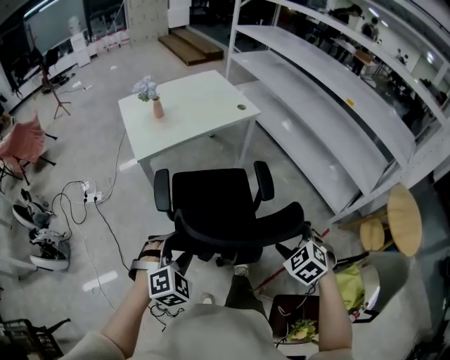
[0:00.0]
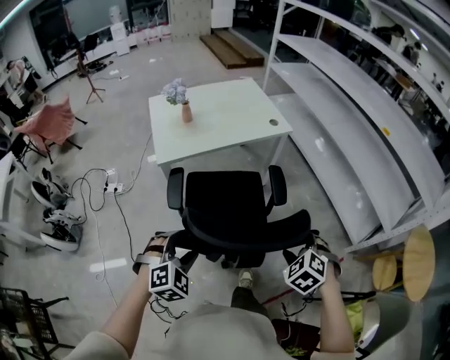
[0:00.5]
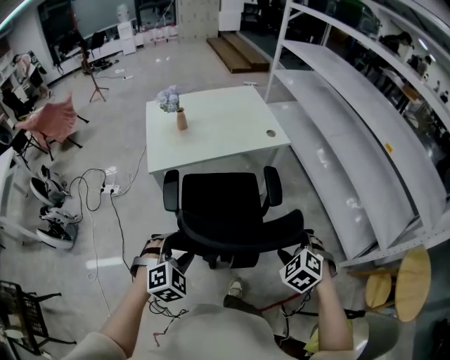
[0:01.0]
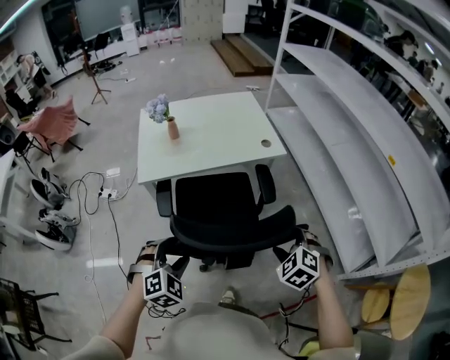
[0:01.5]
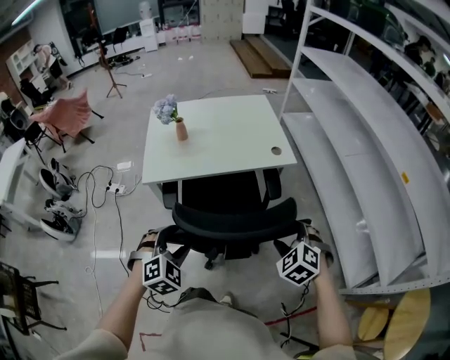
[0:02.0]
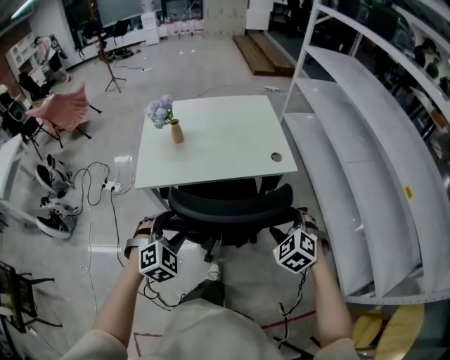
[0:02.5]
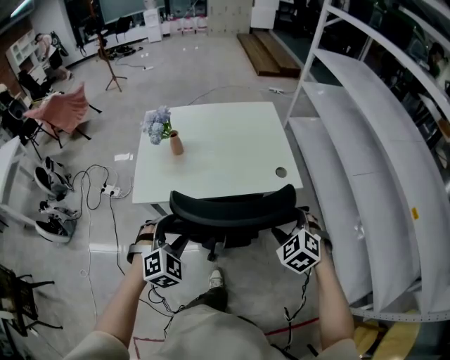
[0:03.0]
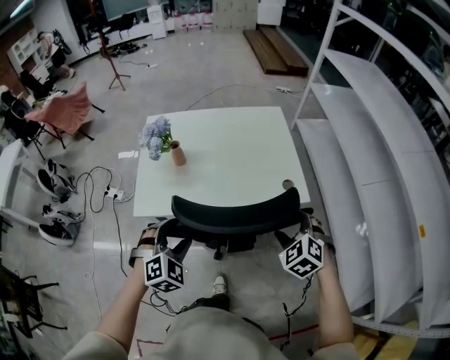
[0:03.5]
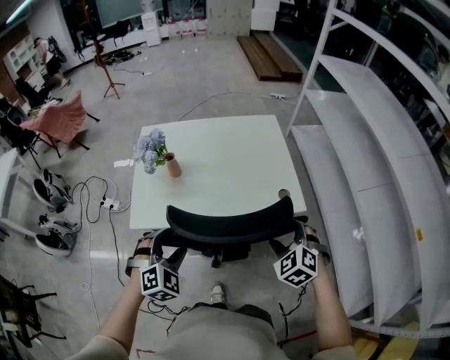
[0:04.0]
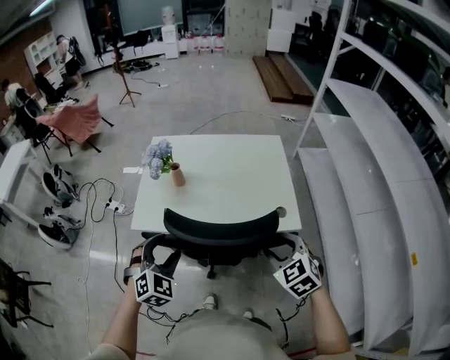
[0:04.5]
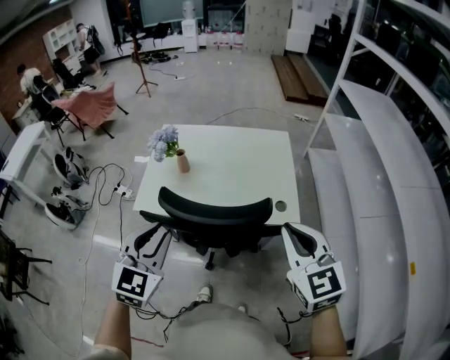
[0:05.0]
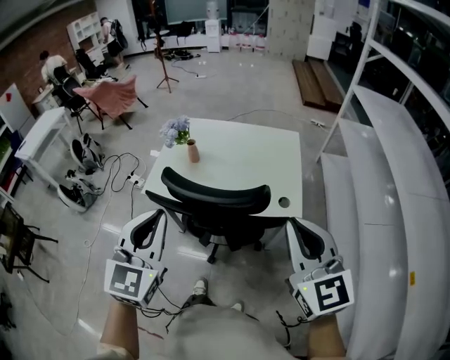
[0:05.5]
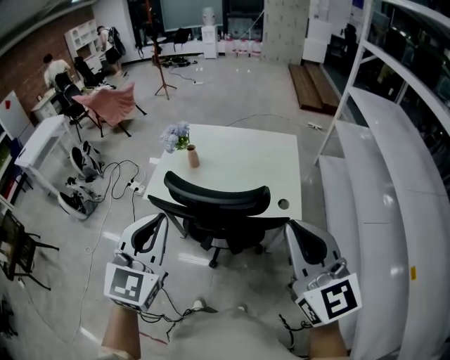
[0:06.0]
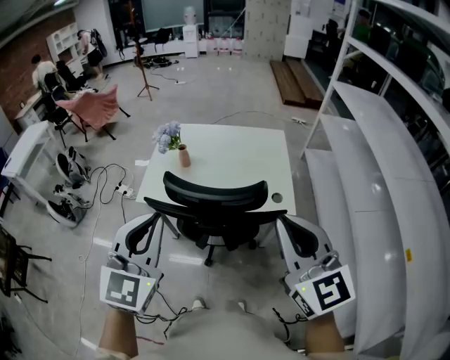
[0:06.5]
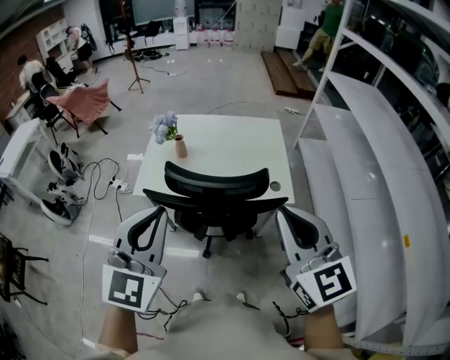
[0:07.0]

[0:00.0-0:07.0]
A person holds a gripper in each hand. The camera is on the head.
0:00.0 to 0:02.0: Both grippers move forward, some 30 cm. The right gripper swivels about 20 degrees; the left gripper rotates approximately 20 degrees.
0:02.0 to 0:03.5: Both grippers travel together forward, some 25 cm.
0:03.5 to 0:05.0: Both grippers travel together upward, about 20 cm. The right gripper tilts its fingers about 30 degrees upward, and closes up, while the left gripper rotates about 40 degrees, and closes its fingers.
0:05.0 to 0:07.0: The right gripper is displaced backward, upward and to the left by roughly 10 cm, while the left gripper is displaced upward and backward by roughly 15 cm.

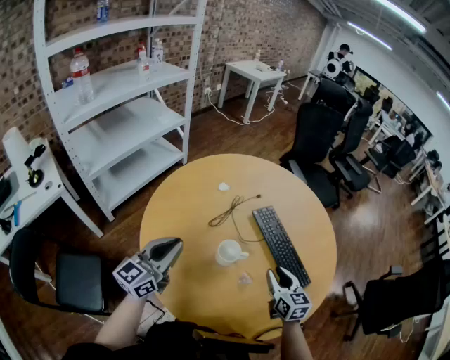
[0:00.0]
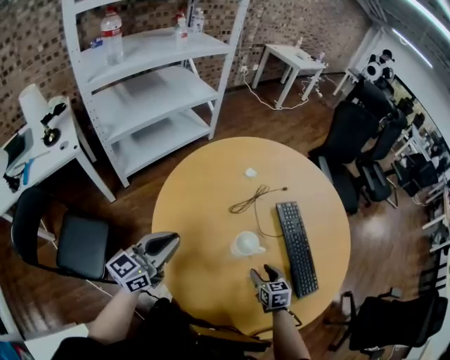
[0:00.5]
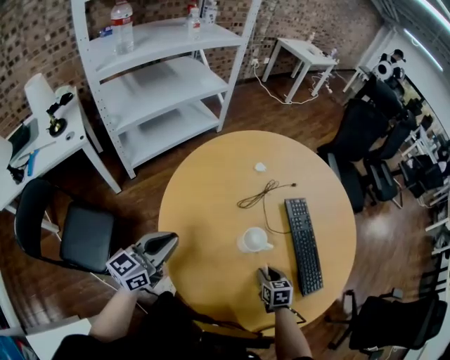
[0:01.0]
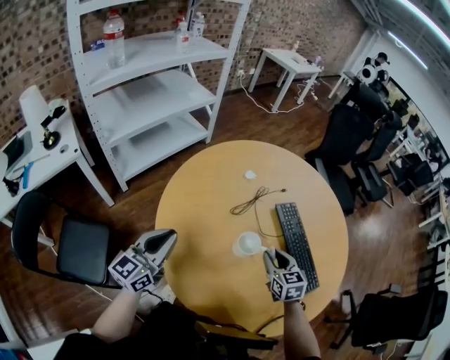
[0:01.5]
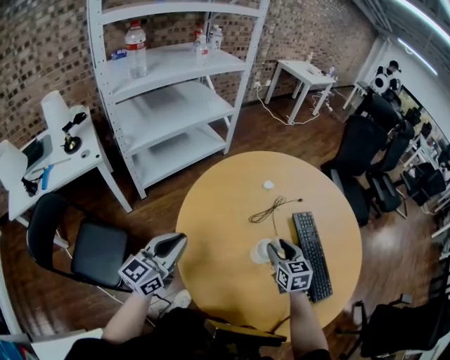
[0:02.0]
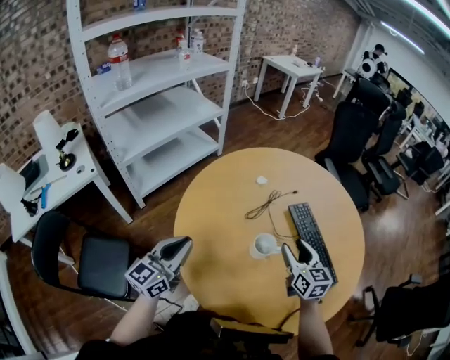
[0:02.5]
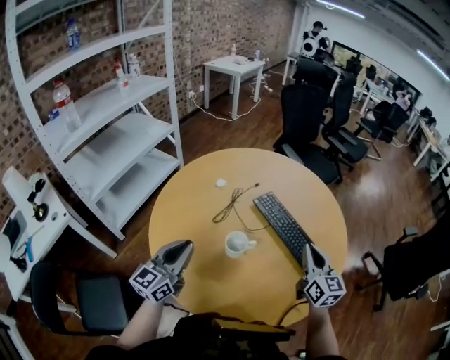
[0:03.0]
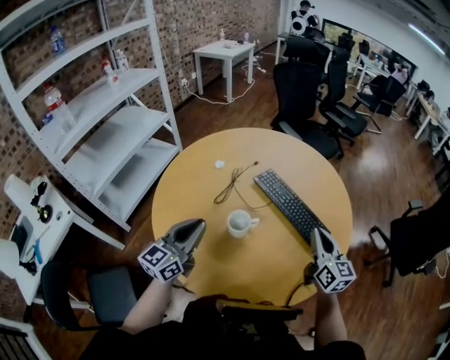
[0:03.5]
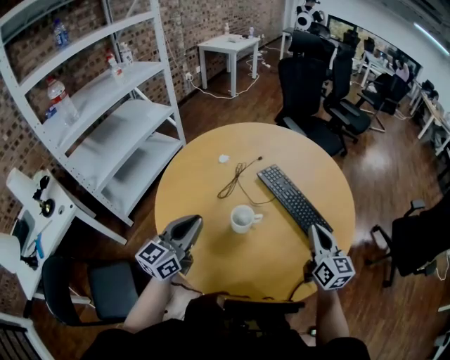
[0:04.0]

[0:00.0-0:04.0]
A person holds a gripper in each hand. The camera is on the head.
0:00.0 to 0:02.0: The left gripper shifts some 10 cm to the left. The right gripper travels to the left and forward by approximately 20 cm, moves roughly 15 cm downward and comes back, and rotates some 20 degrees.
0:02.0 to 0:04.0: The left gripper moves about 15 cm, and rotates approximately 20 degrees, while the right gripper changes place by about 25 cm, turns by about 40 degrees, and closes its fingers.

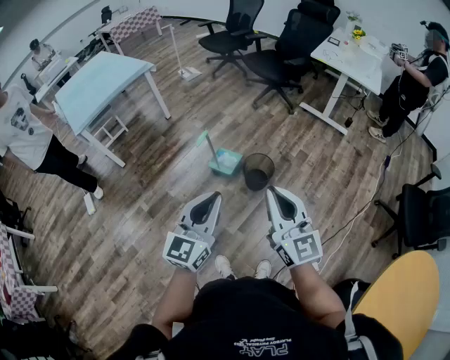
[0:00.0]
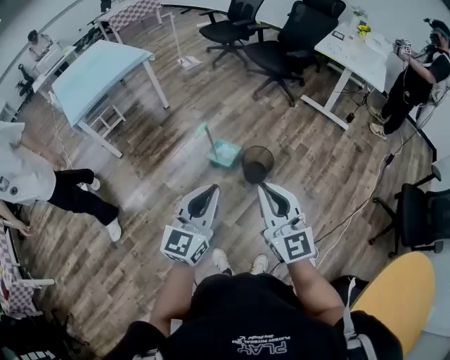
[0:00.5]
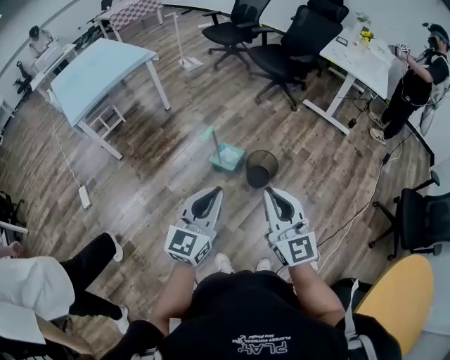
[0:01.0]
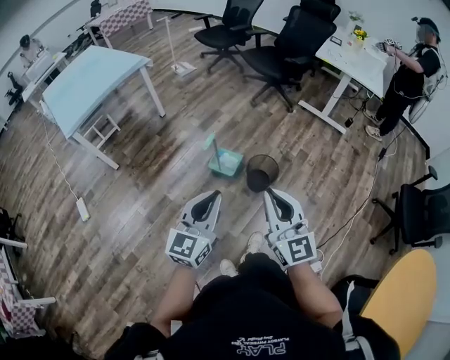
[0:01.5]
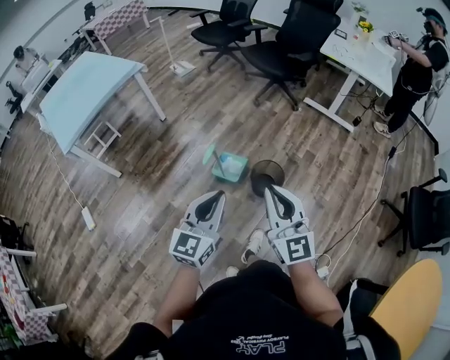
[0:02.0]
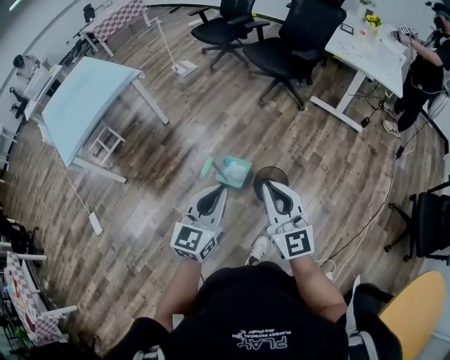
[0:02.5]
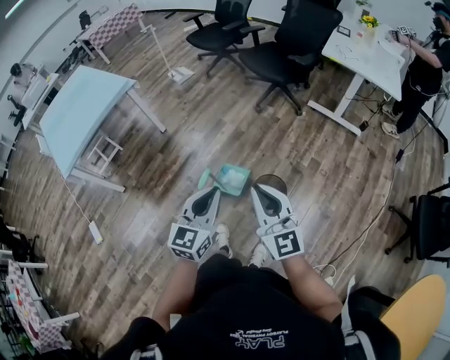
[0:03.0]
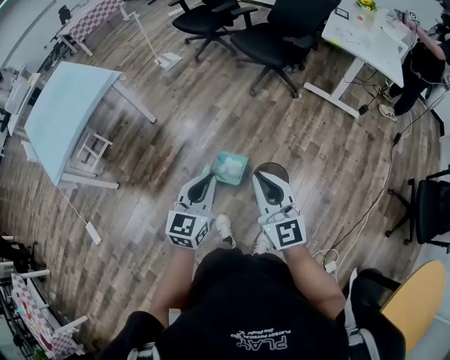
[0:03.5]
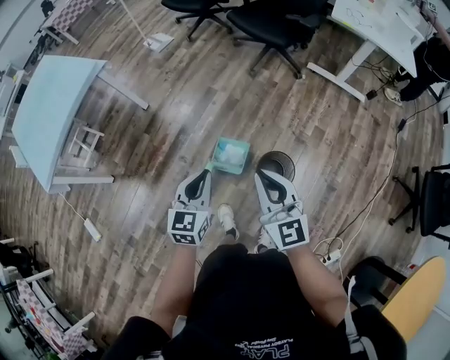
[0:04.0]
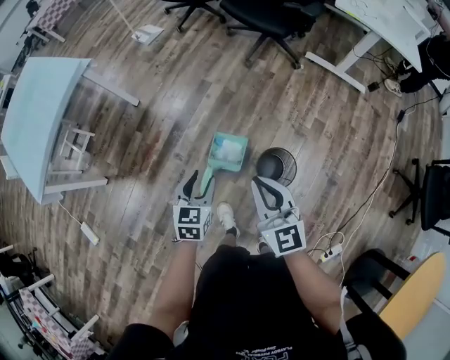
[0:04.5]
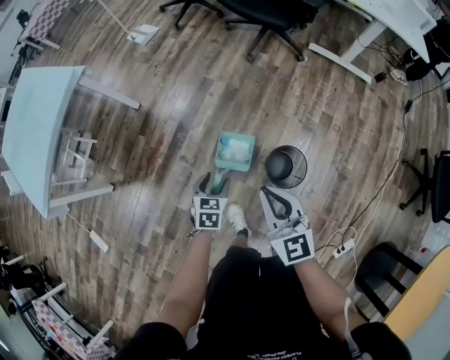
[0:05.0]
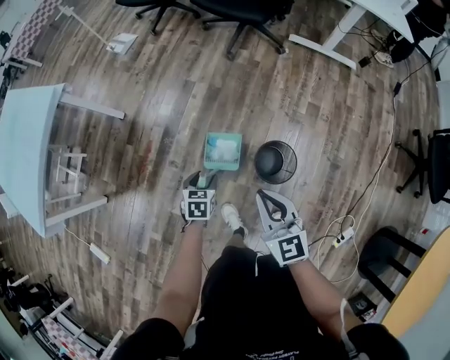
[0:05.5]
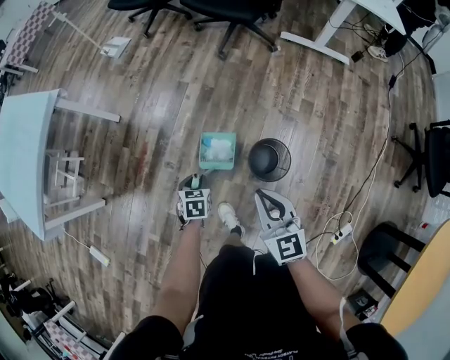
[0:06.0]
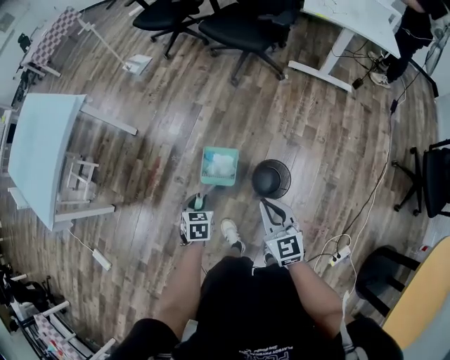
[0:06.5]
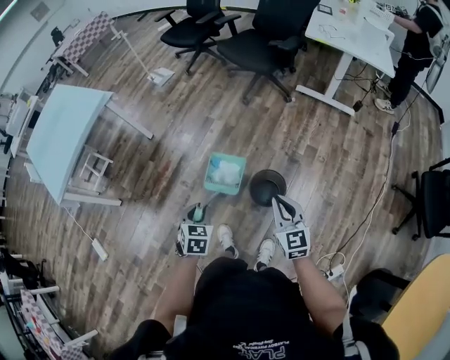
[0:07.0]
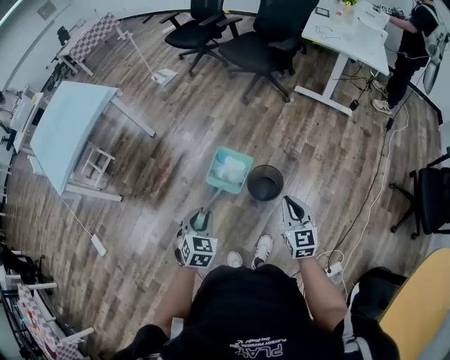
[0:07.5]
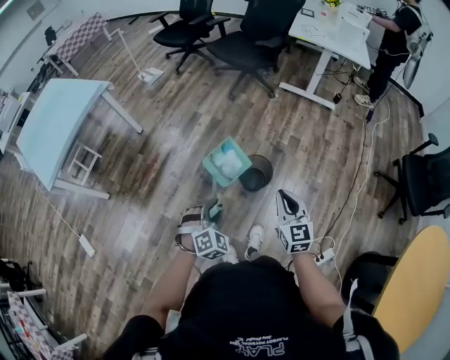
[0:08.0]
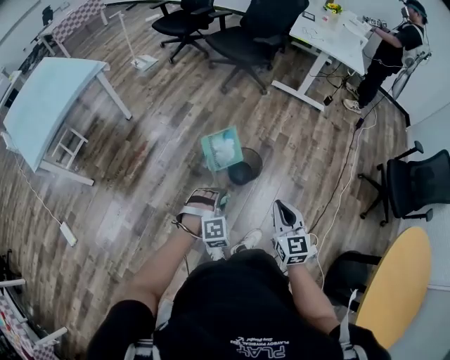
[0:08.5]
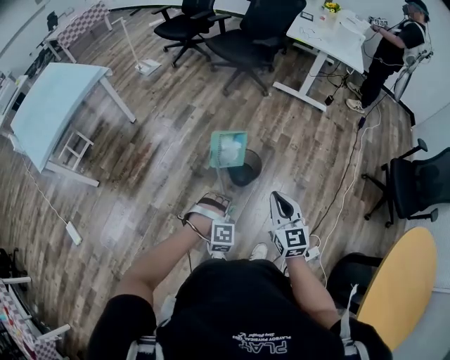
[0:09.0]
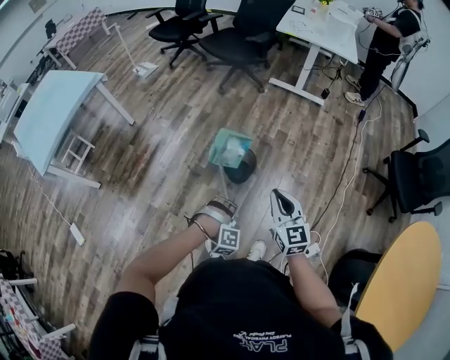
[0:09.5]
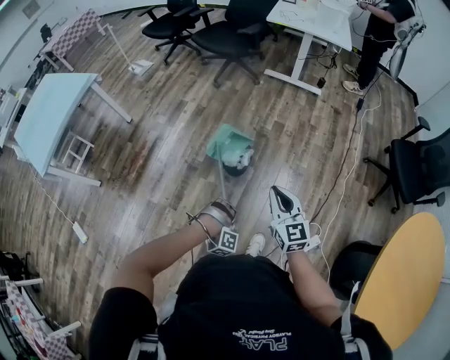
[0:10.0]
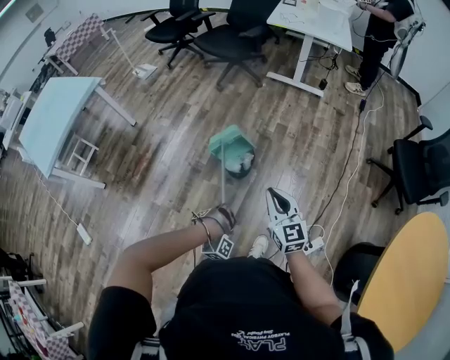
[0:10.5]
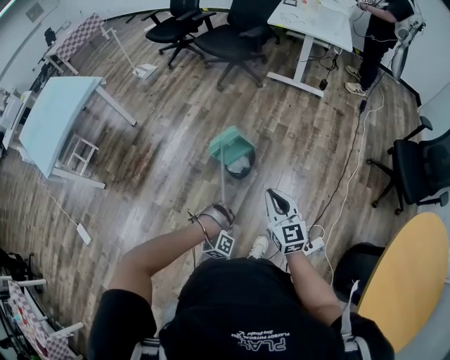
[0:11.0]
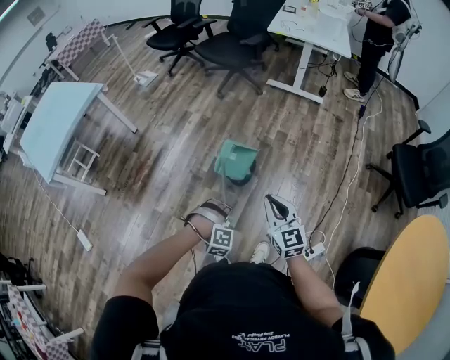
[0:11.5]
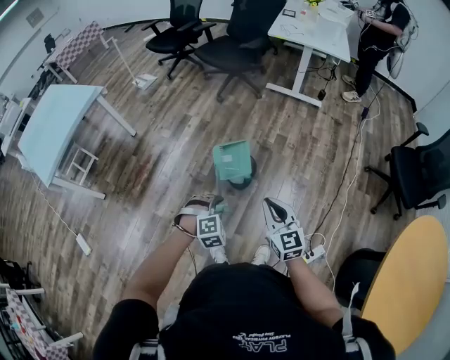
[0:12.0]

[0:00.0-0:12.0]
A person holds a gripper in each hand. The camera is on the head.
0:00.0 to 0:02.0: The right gripper travels forward and to the left by approximately 20 cm; the left gripper moves forward, some 20 cm.
0:02.0 to 0:04.0: Both grippers travel together forward and downward, some 30 cm.
0:04.0 to 0:06.0: The right gripper travels downward by some 15 cm; the left gripper moves downward, roughly 30 cm, tips its fingers downward by approximately 40 degrees, and opens and closes again.
0:06.0 to 0:08.0: The left gripper shifts approximately 35 cm backward and upward, and rotates around the line of its fingers by some 50 degrees, clockwise from behind. Meanwhile the right gripper shifts roughly 25 cm backward and to the right.
0:08.0 to 0:10.0: The right gripper shifts some 15 cm to the right and backward. Meanwhile the left gripper shifts about 25 cm to the right, backward and downward, and twists some 70 degrees clockwise, seen from behind.
0:10.0 to 0:12.0: The right gripper is displaced to the left by roughly 5 cm. The left gripper heads upward and forward, covering some 10 cm, and rotates around the line of its fingers by about 50 degrees, counterclockwise from behind.

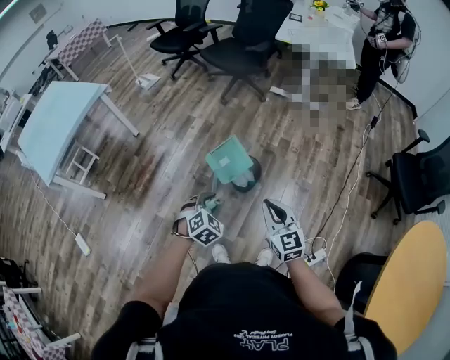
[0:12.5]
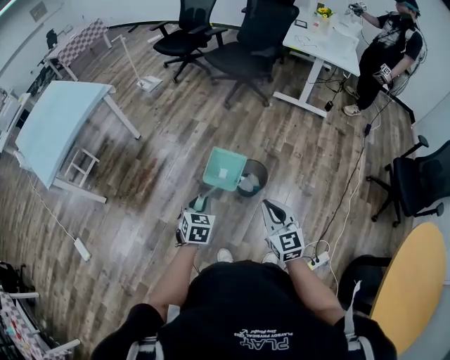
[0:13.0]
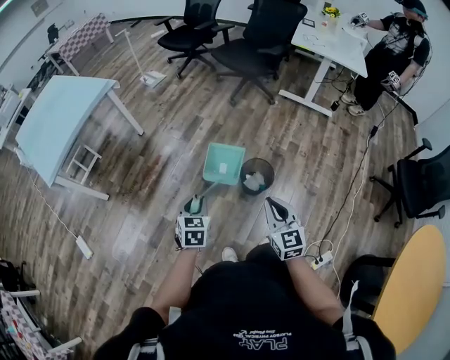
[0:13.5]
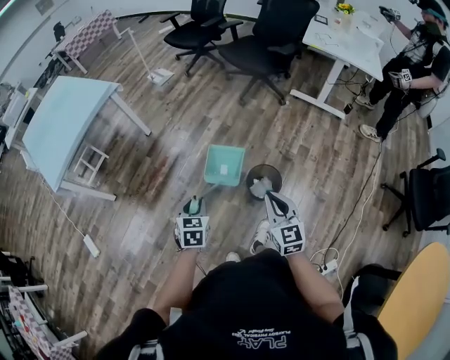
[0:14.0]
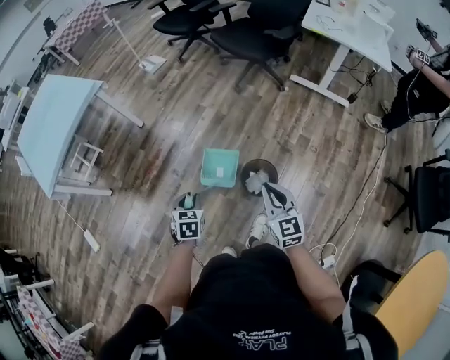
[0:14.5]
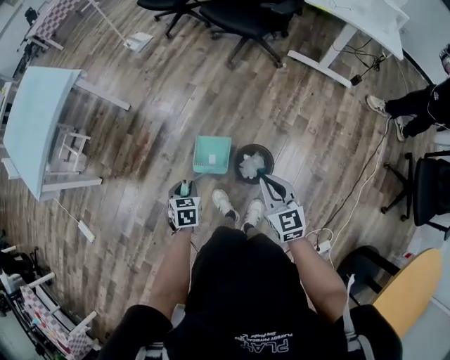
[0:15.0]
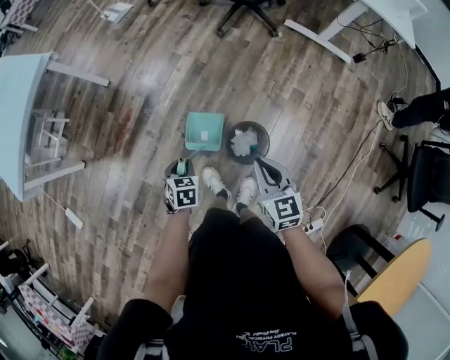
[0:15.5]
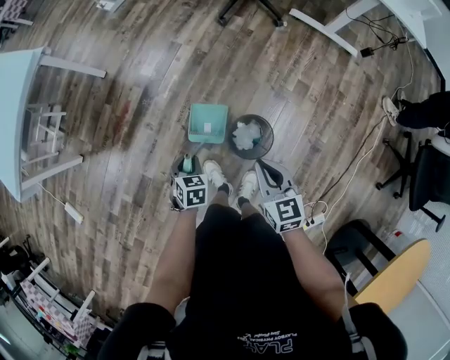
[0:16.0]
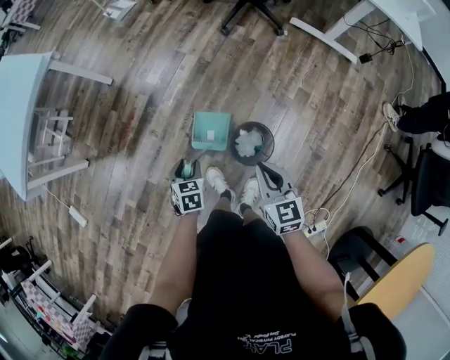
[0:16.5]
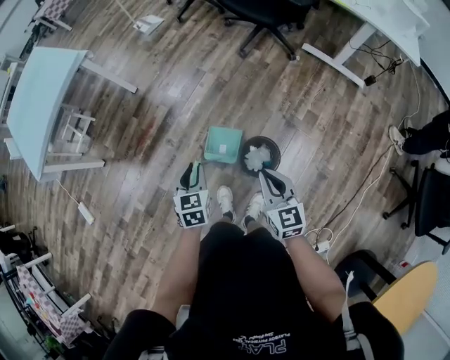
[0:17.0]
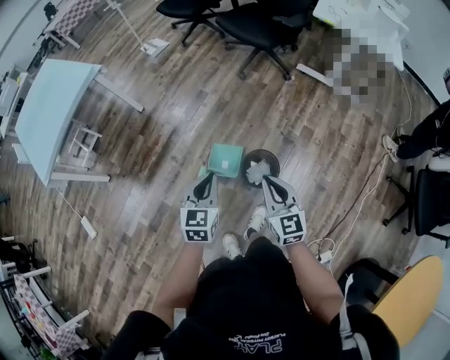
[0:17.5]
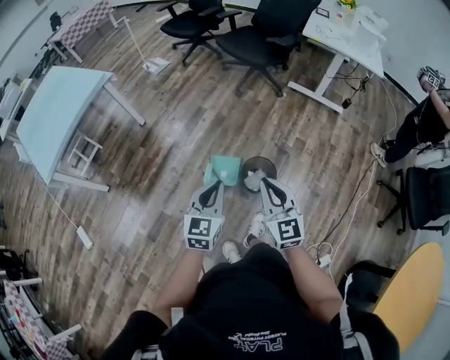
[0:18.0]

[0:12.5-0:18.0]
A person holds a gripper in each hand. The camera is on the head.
0:12.5 to 0:14.5: The left gripper goes approximately 25 cm forward and to the left, and rolls counterclockwise, seen from behind, by roughly 50 degrees, while the right gripper travels forward by some 25 cm.
0:14.5 to 0:16.0: The grippers both shift downward and forward by approximately 15 cm.
0:16.0 to 0:18.0: The grippers both shift upward and backward by about 30 cm. The left gripper points its fingers some 40 degrees further upward. Meanwhile the right gripper rotates about 30 degrees.
